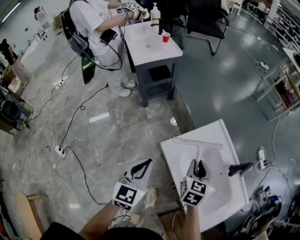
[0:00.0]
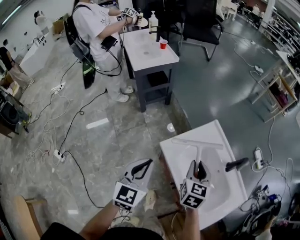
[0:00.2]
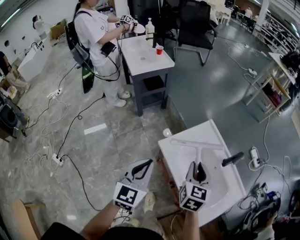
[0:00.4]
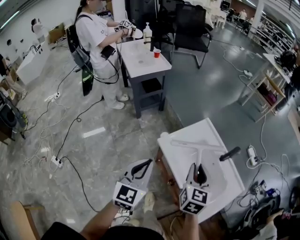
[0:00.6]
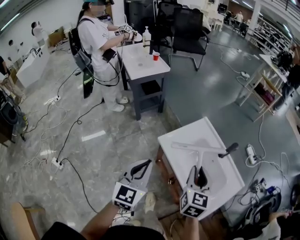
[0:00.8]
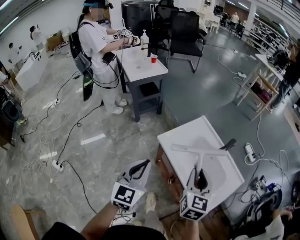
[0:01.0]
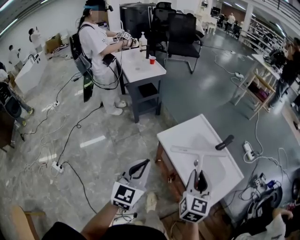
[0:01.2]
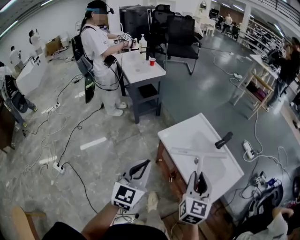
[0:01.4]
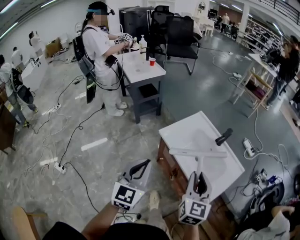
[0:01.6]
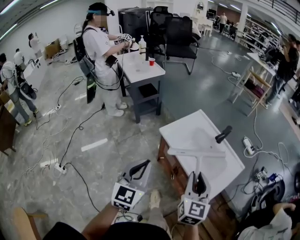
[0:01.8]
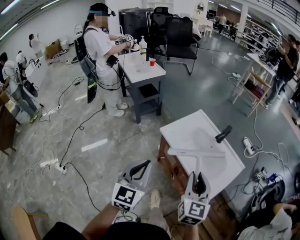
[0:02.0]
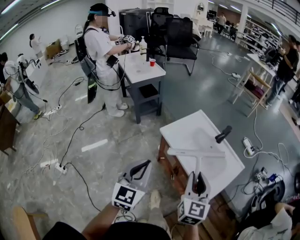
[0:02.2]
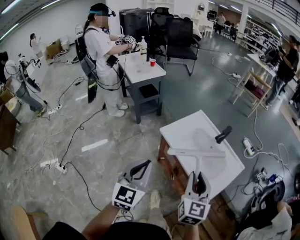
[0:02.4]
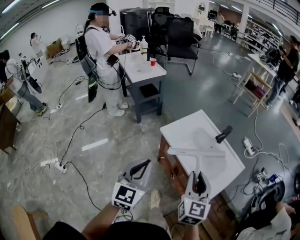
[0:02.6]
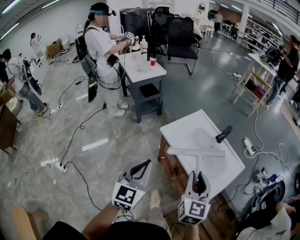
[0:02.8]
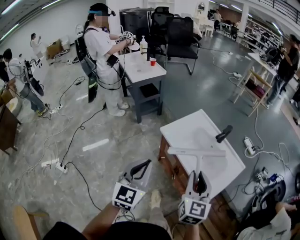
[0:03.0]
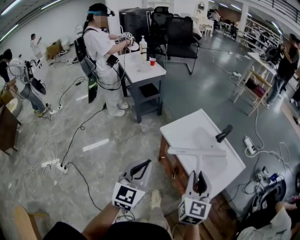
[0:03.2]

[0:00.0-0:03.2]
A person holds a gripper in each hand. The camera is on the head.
0:00.0 to 0:01.6: The grippers both shift backward and upward by about 30 cm. The right gripper changes its angle by approximately 20 degrees.
0:01.6 to 0:03.2: The grippers stay close to where they were, moving slightly.

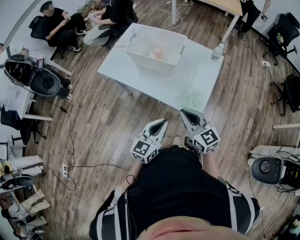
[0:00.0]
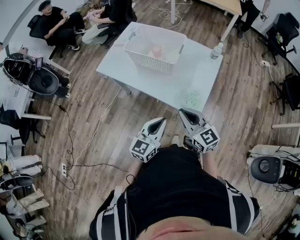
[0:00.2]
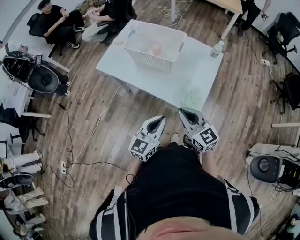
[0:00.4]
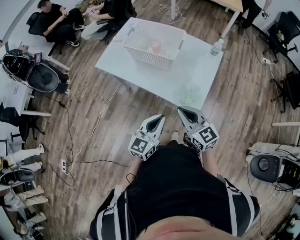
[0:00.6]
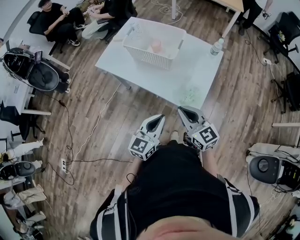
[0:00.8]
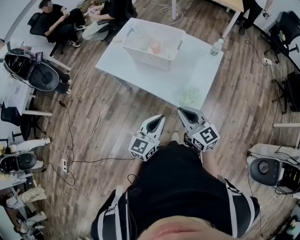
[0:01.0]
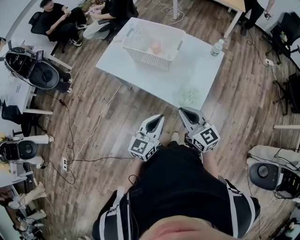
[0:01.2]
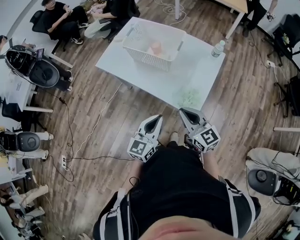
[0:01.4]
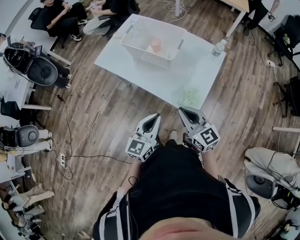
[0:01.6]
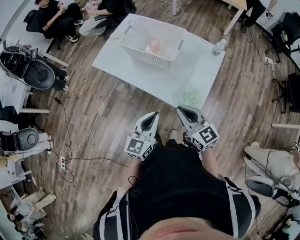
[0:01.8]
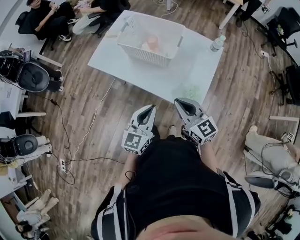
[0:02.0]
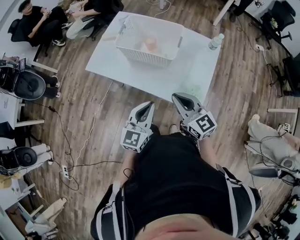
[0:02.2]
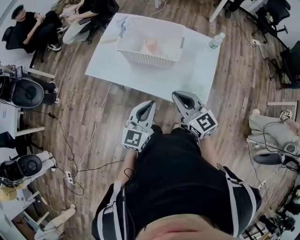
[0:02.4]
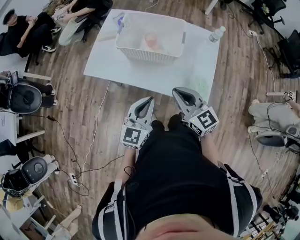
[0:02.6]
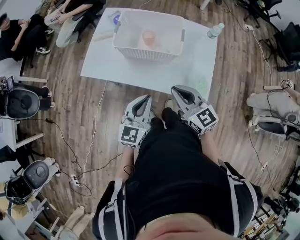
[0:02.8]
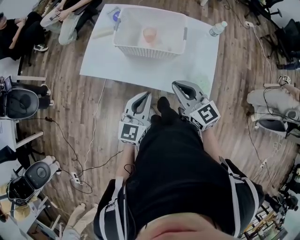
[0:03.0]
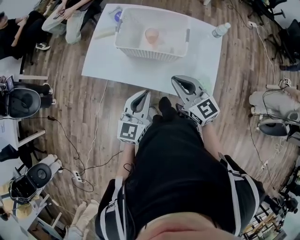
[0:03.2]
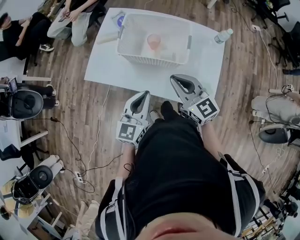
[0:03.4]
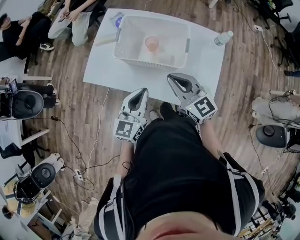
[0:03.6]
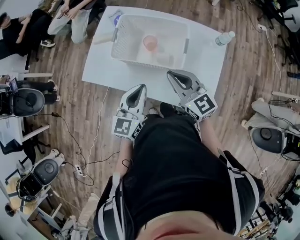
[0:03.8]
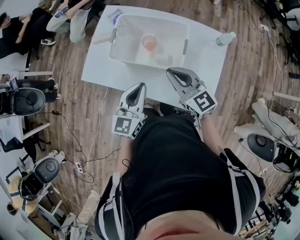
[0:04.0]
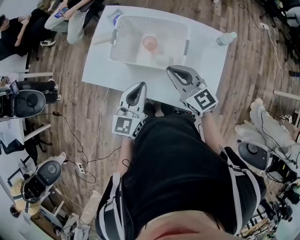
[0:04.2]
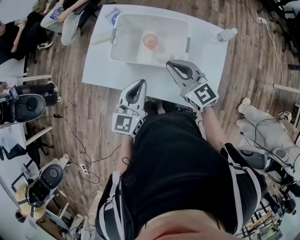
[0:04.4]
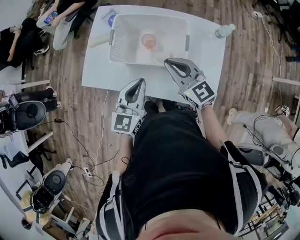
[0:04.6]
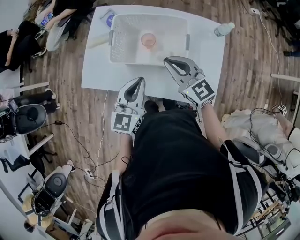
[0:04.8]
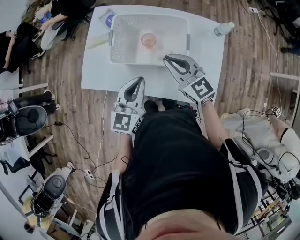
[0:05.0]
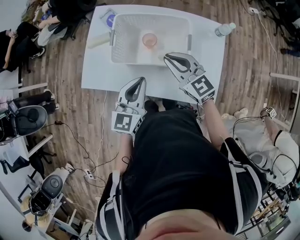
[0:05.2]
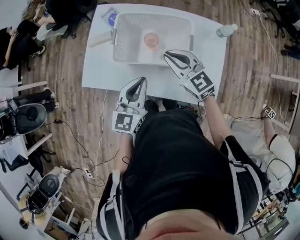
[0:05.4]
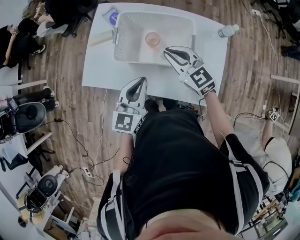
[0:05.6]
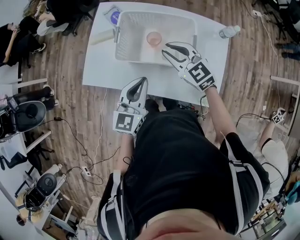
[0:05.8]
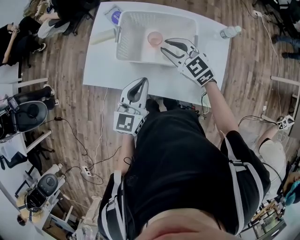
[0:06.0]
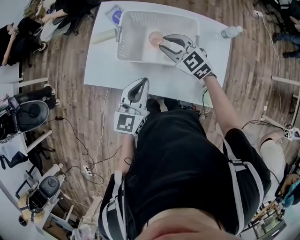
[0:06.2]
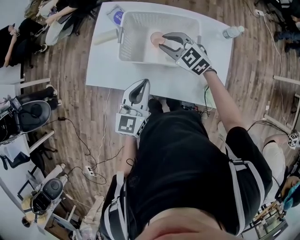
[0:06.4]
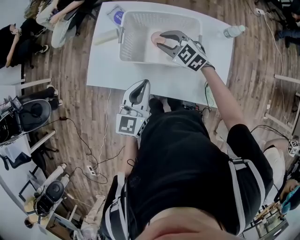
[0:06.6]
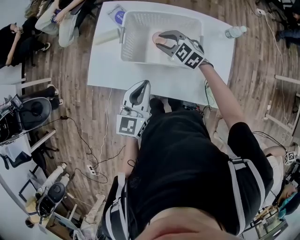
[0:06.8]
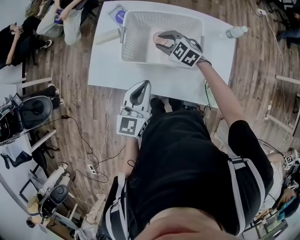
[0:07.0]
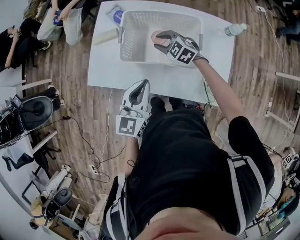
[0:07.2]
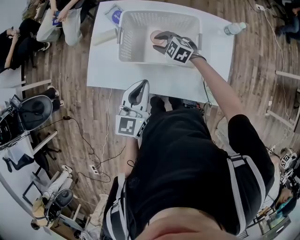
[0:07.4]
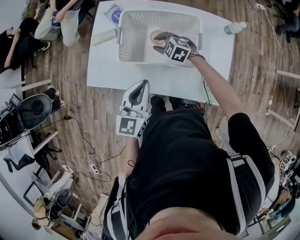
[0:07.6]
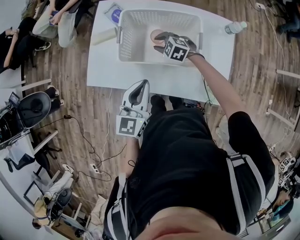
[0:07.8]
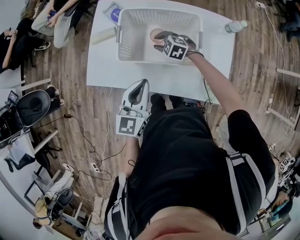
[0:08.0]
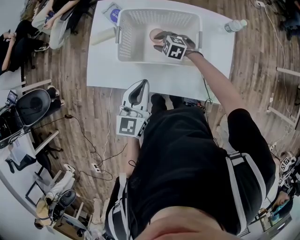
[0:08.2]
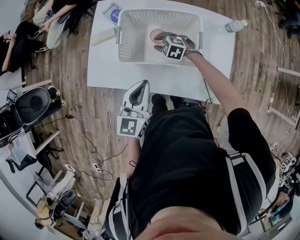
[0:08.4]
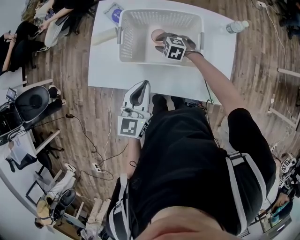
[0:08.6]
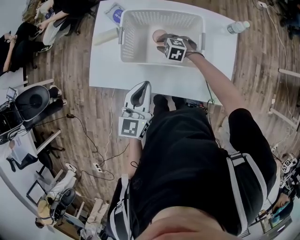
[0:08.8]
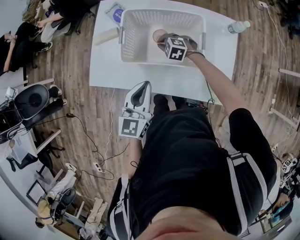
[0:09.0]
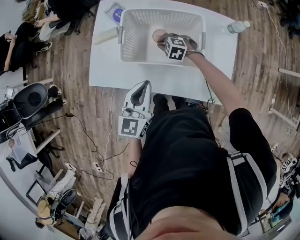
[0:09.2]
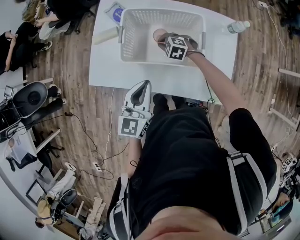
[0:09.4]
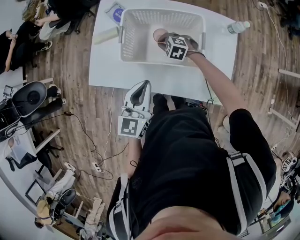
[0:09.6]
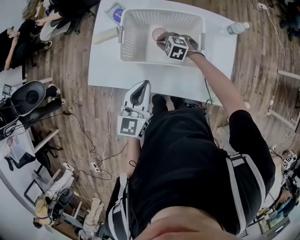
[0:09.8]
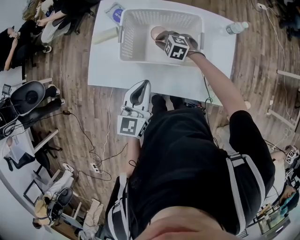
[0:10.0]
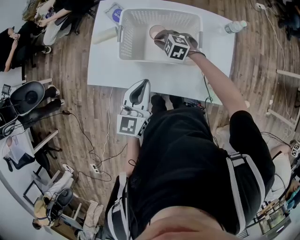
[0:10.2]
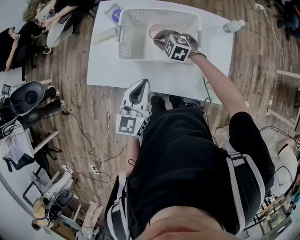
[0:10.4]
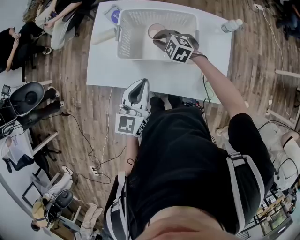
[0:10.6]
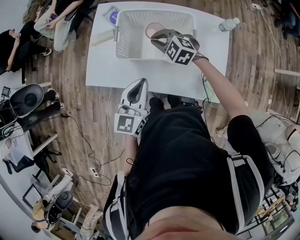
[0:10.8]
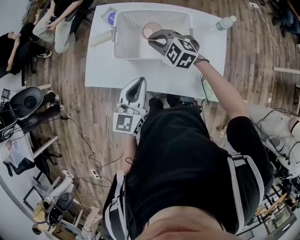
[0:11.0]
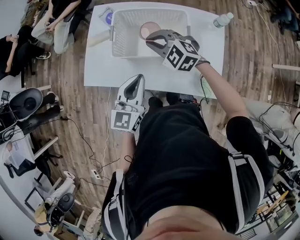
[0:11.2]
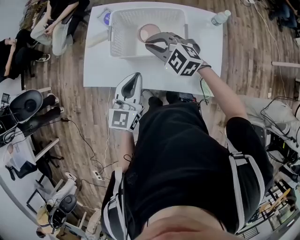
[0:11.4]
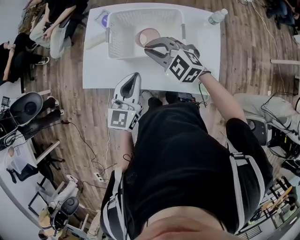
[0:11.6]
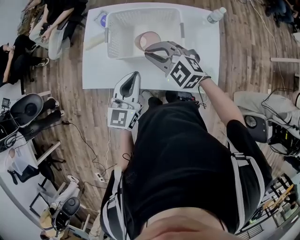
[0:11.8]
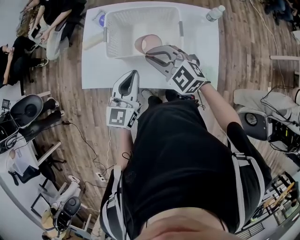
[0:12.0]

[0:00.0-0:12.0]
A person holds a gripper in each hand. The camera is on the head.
0:00.0 to 0:01.6: There are only small adjustments of the grippers.
0:01.6 to 0:03.0: Both grippers travel together forward and to the left, some 20 cm.
0:03.0 to 0:04.4: Both grippers travel together forward, some 15 cm.
0:04.4 to 0:06.0: The right gripper is displaced forward by about 10 cm.
0:06.0 to 0:07.6: The right gripper is displaced downward by some 15 cm, and swivels roughly 30 degrees.
0:07.6 to 0:09.0: The right gripper heads downward, covering some 5 cm, and closes its fingers.
0:09.0 to 0:10.4: The right gripper shifts roughly 10 cm upward.
0:10.4 to 0:12.0: The right gripper is displaced upward and backward by roughly 20 cm, and turns by about 20 degrees.

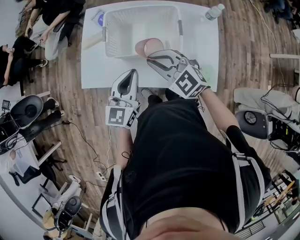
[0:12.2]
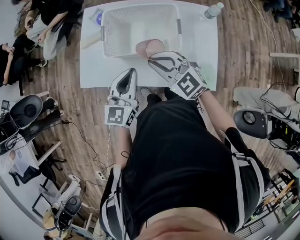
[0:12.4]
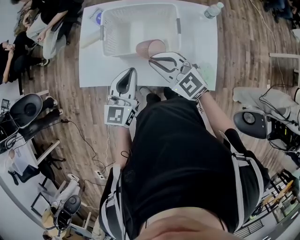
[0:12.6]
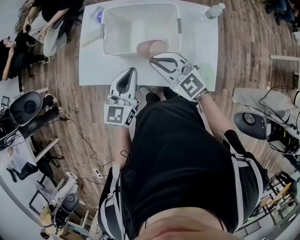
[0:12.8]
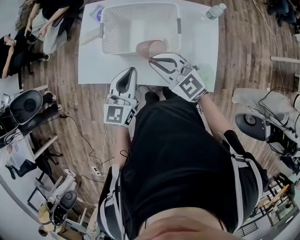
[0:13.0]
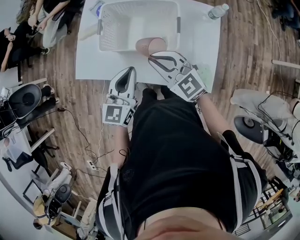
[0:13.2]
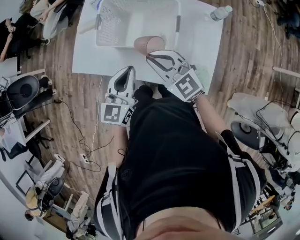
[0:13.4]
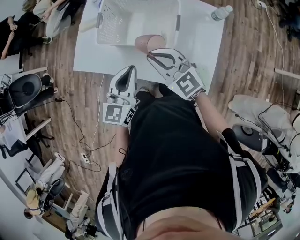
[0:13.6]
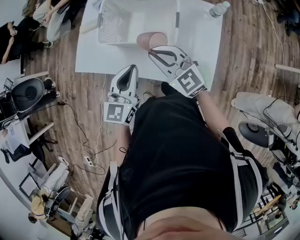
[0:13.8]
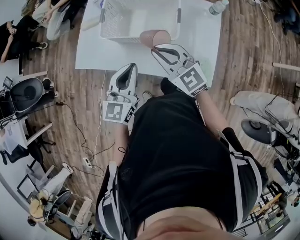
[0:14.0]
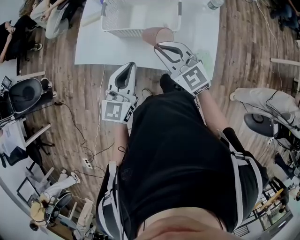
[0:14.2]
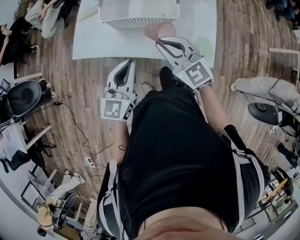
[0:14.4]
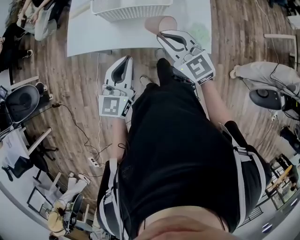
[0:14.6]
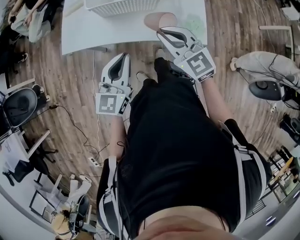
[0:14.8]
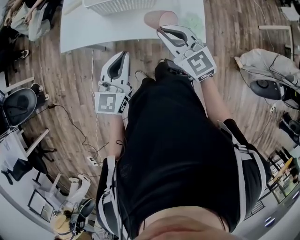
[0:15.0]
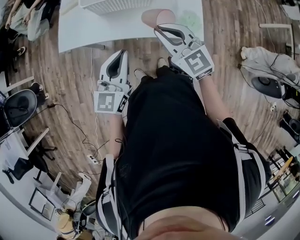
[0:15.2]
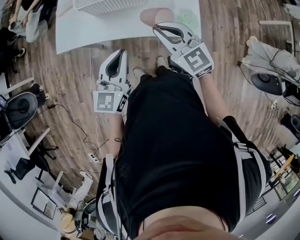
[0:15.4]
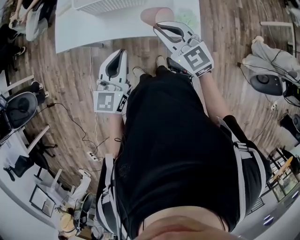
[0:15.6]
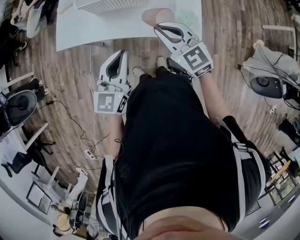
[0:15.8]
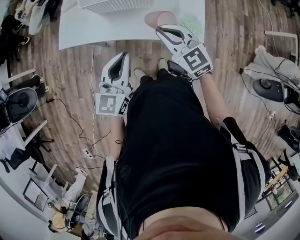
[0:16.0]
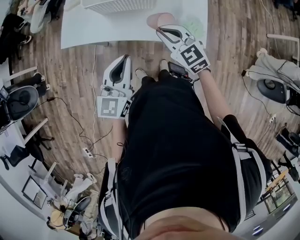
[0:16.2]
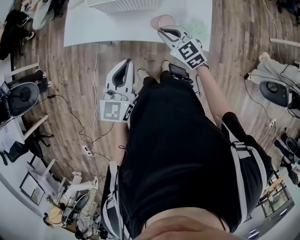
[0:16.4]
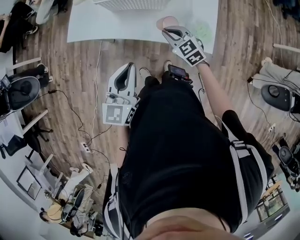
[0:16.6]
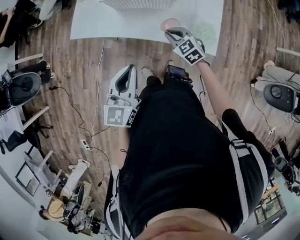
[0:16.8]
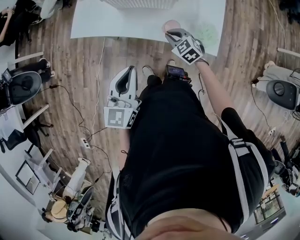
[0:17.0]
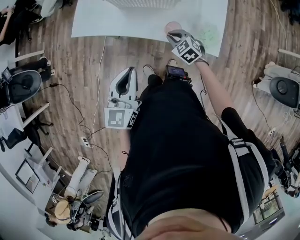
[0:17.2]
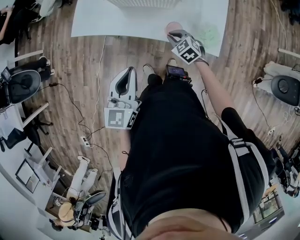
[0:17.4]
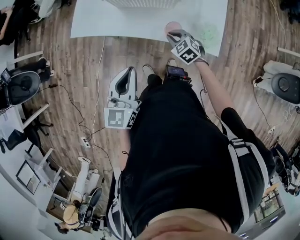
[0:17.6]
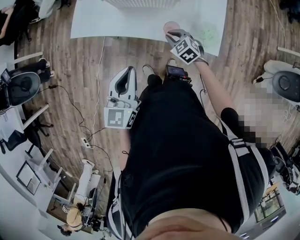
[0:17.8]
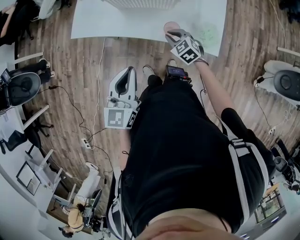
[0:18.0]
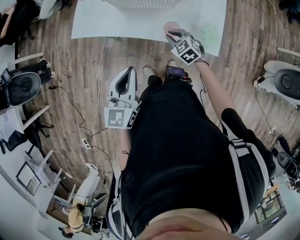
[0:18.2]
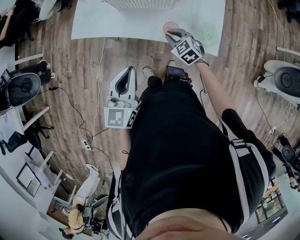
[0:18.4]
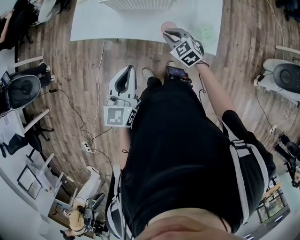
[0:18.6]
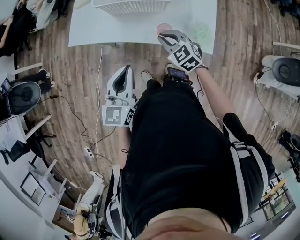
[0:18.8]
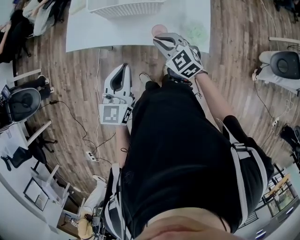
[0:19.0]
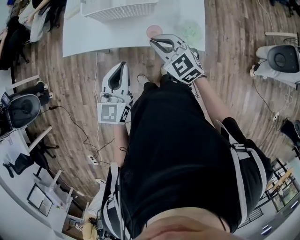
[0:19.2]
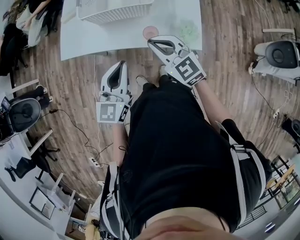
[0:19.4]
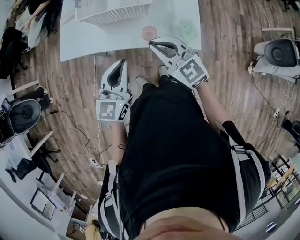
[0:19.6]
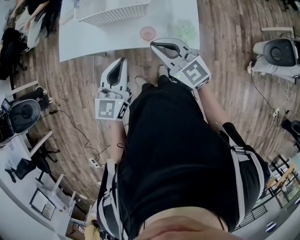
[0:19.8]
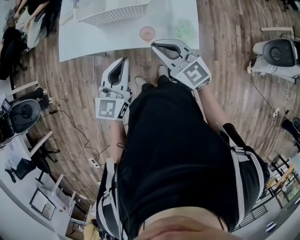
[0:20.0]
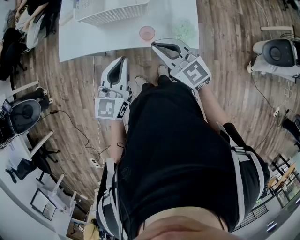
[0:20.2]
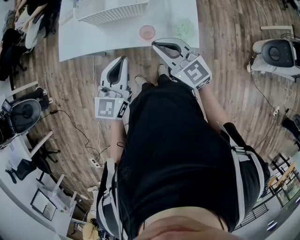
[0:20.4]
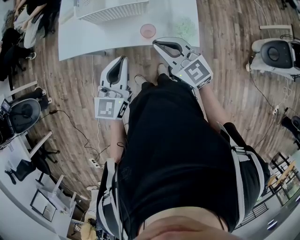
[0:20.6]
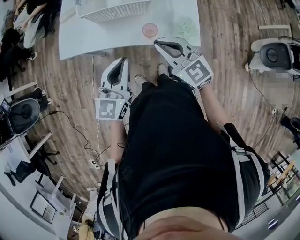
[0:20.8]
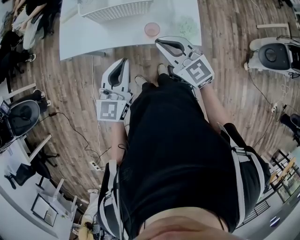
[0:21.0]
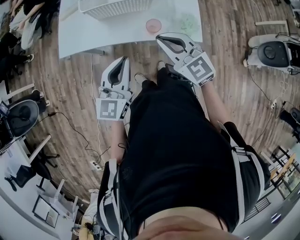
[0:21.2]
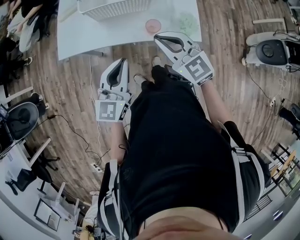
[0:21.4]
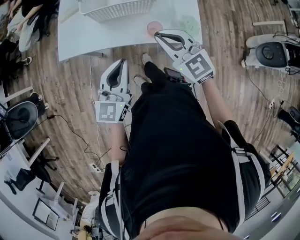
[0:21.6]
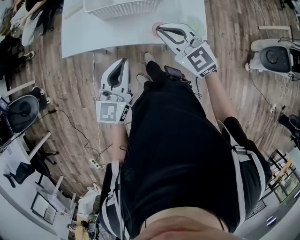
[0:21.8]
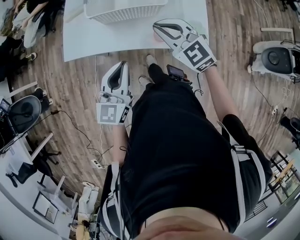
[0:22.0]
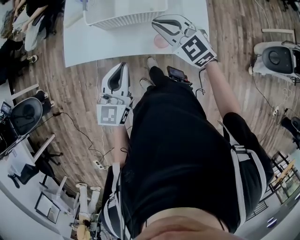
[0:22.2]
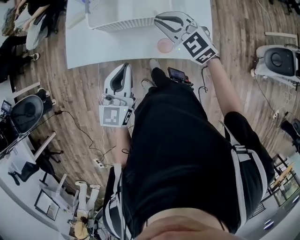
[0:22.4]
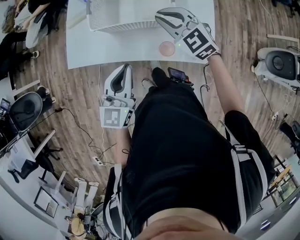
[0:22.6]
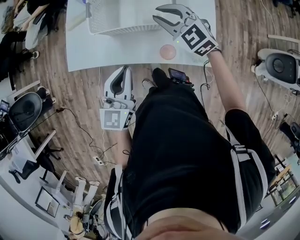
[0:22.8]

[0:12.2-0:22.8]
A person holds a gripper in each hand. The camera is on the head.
0:12.2 to 0:13.8: The right gripper shifts approximately 5 cm to the right; the left gripper shifts by approximately 5 cm.
0:13.8 to 0:15.2: Both grippers move backward, about 15 cm.
0:15.2 to 0:16.8: The right gripper travels downward by some 20 cm, and changes its angle by about 20 degrees.
0:16.8 to 0:18.2: The grippers move only a little.
0:18.2 to 0:19.8: The left gripper travels to the right by roughly 5 cm. The right gripper goes some 25 cm upward, and tips its fingers upward by about 30 degrees.
0:19.8 to 0:21.2: The left gripper shifts approximately 5 cm to the left.
0:21.2 to 0:22.8: The left gripper goes roughly 15 cm forward. Meanwhile the right gripper travels forward by some 25 cm.
